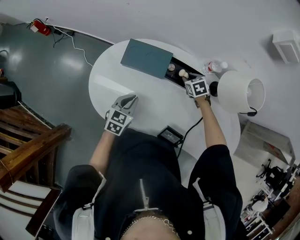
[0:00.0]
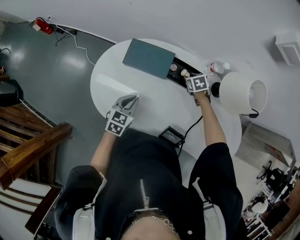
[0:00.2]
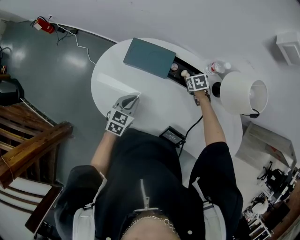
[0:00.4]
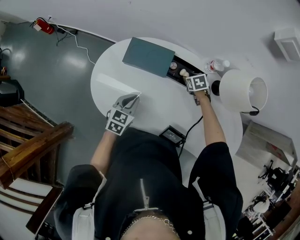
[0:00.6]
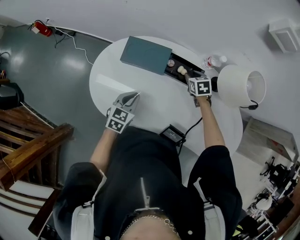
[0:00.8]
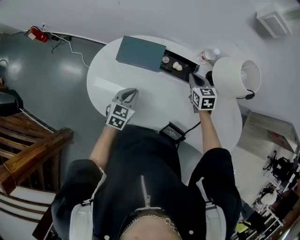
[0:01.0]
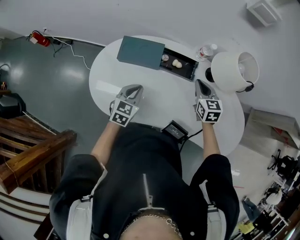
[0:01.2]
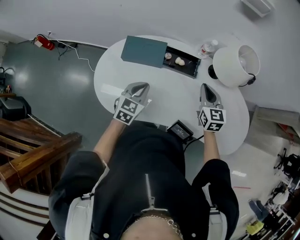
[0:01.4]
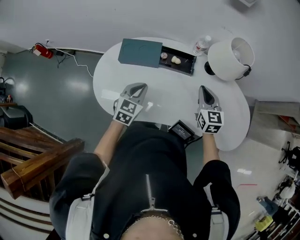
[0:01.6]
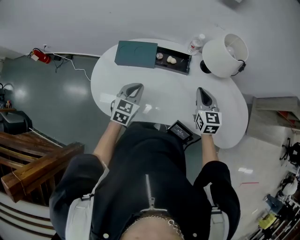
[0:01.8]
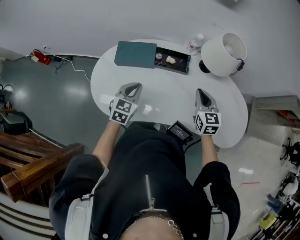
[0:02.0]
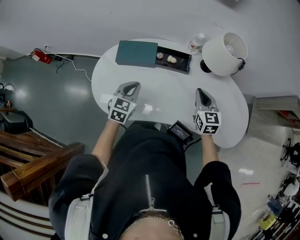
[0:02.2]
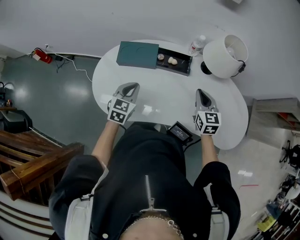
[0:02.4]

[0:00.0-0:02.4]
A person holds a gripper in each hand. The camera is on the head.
0:00.0 to 0:01.2: The right gripper moves upward and backward, roughly 20 cm, tips its fingers upward by about 30 degrees, and closes its fingers. Meanwhile the left gripper changes place by some 5 cm.
0:01.2 to 0:02.4: The right gripper heads backward, covering roughly 10 cm.

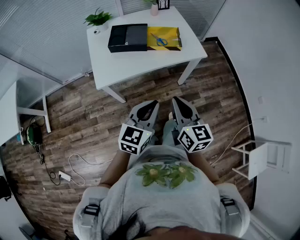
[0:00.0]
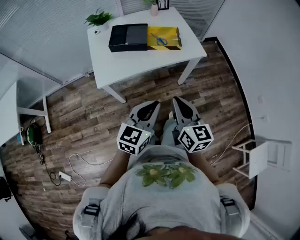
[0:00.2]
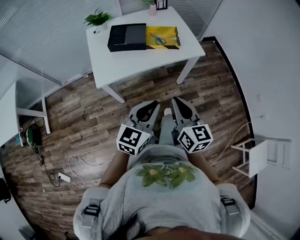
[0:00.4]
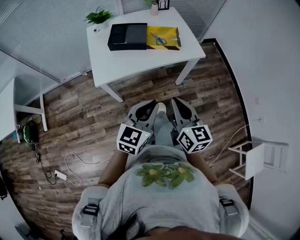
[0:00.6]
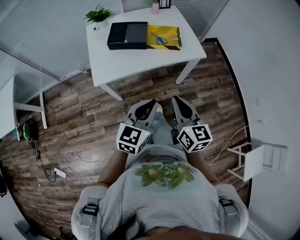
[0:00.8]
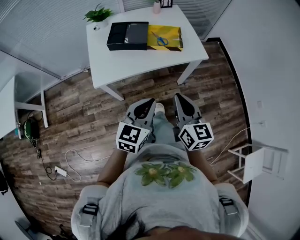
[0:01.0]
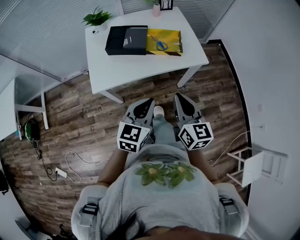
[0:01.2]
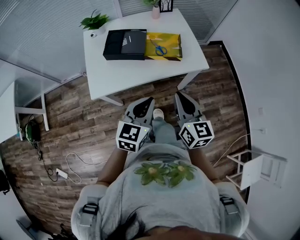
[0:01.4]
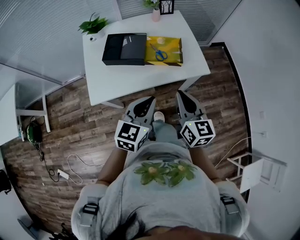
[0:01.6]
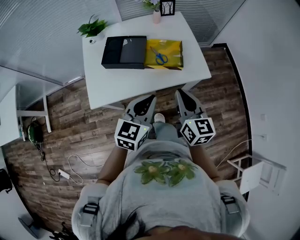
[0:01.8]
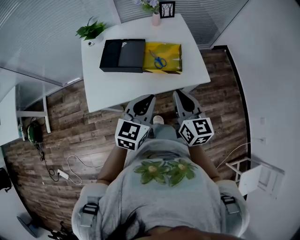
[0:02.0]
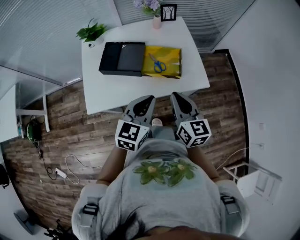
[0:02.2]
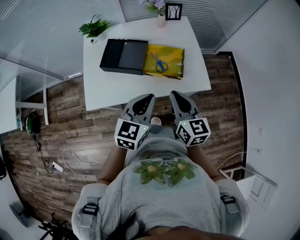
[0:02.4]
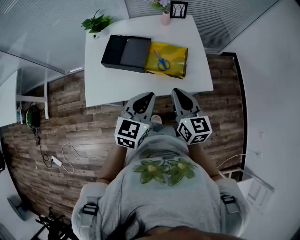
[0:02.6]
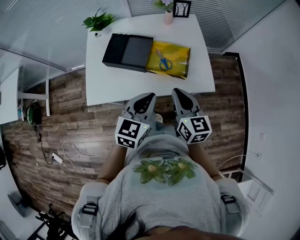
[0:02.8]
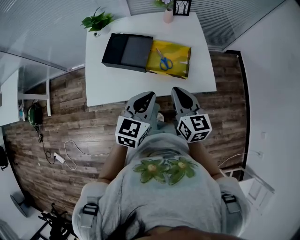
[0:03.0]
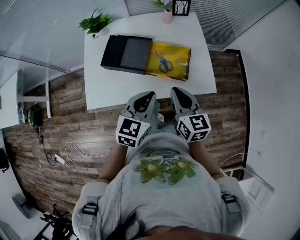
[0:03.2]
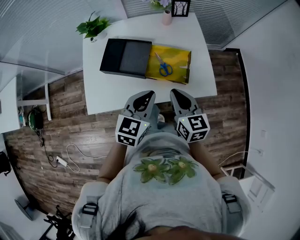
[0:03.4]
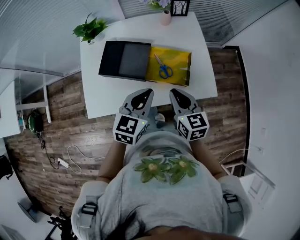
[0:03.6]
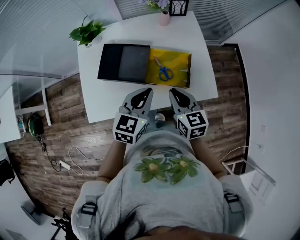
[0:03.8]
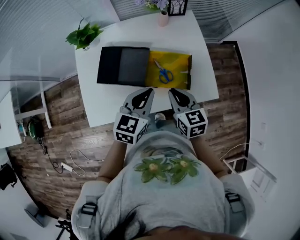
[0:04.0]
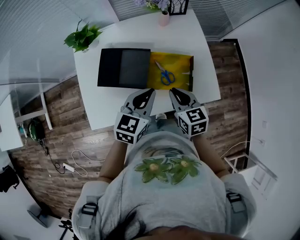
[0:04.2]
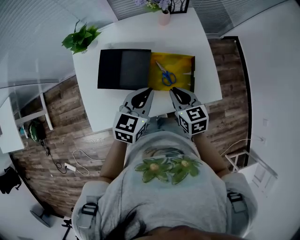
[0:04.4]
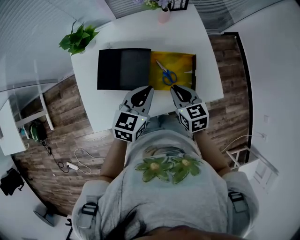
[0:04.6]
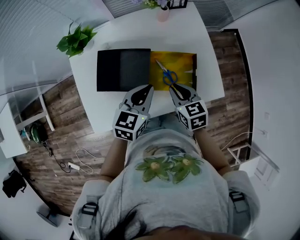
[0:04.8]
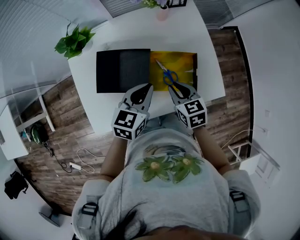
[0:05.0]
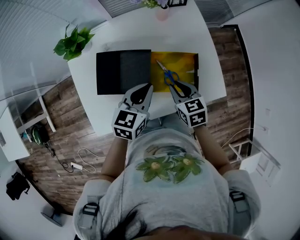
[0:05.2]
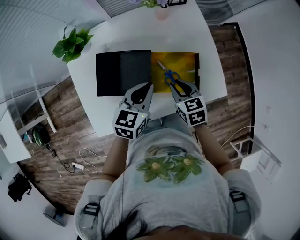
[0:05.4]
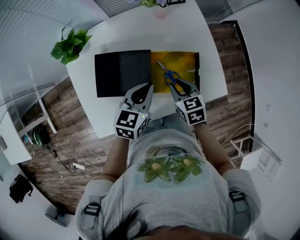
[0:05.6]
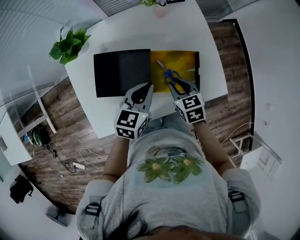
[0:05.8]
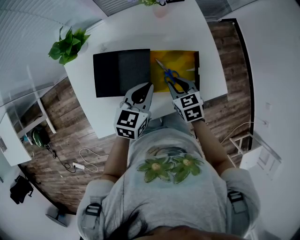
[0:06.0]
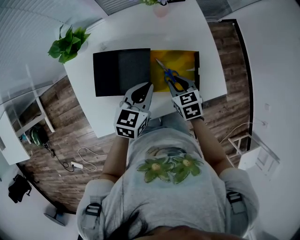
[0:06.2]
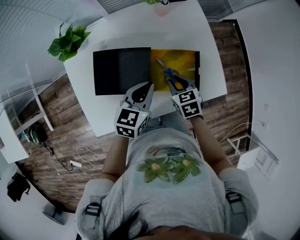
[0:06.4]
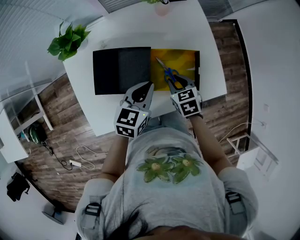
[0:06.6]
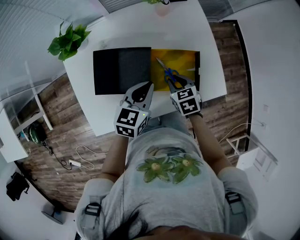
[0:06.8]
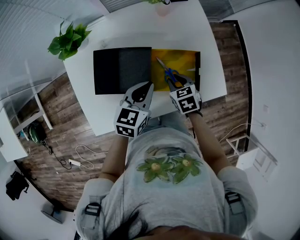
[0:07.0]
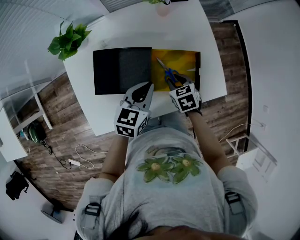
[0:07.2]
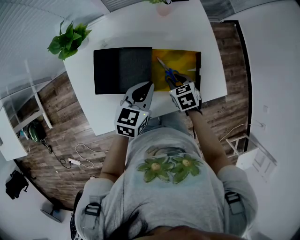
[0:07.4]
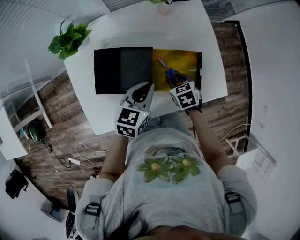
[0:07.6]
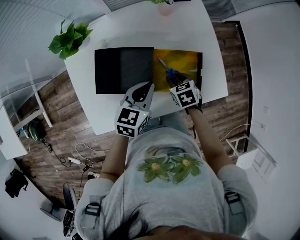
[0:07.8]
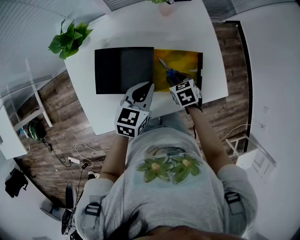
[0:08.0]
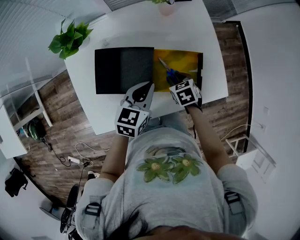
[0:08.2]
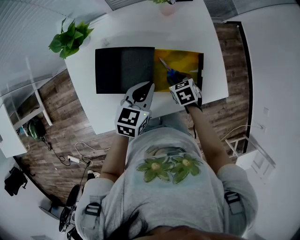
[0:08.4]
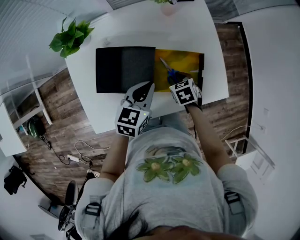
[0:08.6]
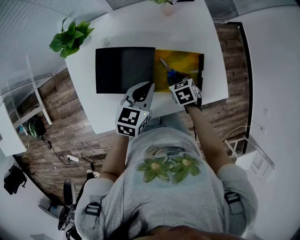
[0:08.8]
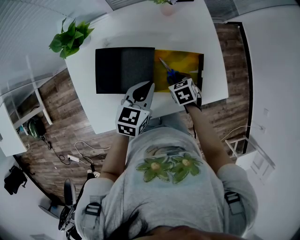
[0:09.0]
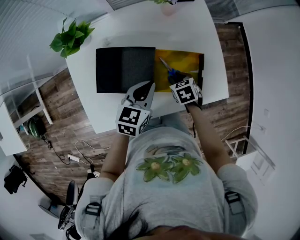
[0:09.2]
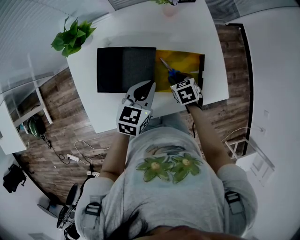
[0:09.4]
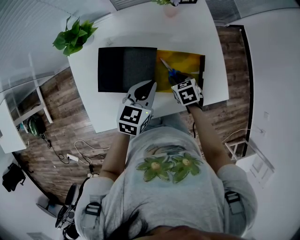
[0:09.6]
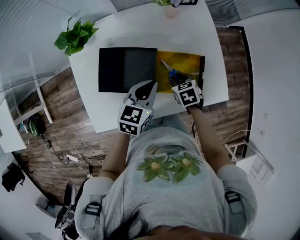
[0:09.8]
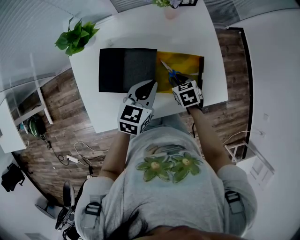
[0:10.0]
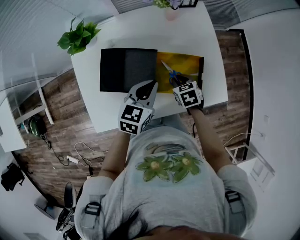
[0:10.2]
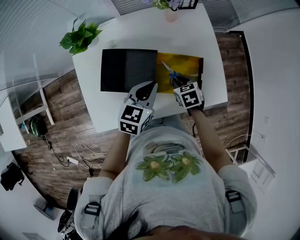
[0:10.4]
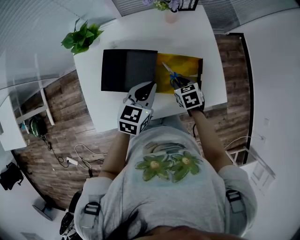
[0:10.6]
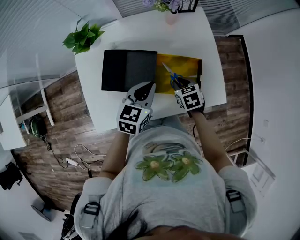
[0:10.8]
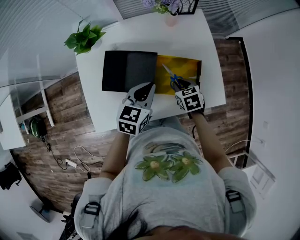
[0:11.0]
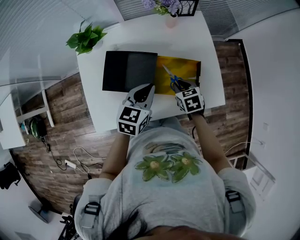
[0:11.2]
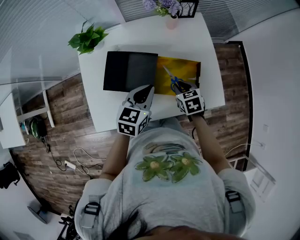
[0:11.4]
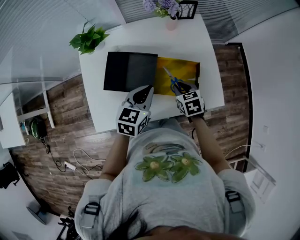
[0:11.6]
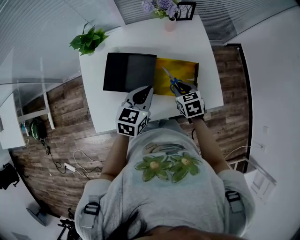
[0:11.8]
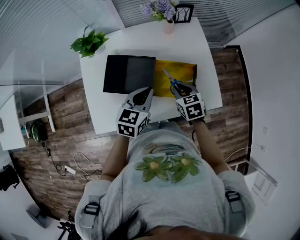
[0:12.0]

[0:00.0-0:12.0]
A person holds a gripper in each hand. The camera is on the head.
0:00.0 to 0:01.6: The two grippers go some 15 cm forward.
0:01.6 to 0:03.0: The two grippers go approximately 10 cm forward.
0:03.0 to 0:04.4: The right gripper is displaced forward and downward by approximately 15 cm, and changes its angle by roughly 20 degrees, while the left gripper heads forward, covering some 15 cm.
0:04.4 to 0:06.0: The left gripper travels downward by roughly 5 cm. The right gripper goes approximately 10 cm downward.
0:06.0 to 0:07.6: The right gripper heads downward, covering some 5 cm.
0:07.6 to 0:10.4: The grippers move only a little.
0:10.4 to 0:12.0: The right gripper travels upward by some 10 cm.

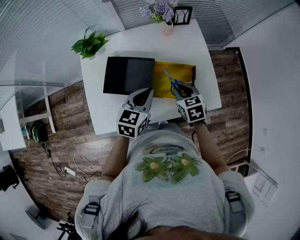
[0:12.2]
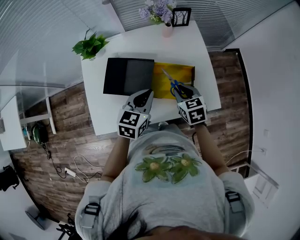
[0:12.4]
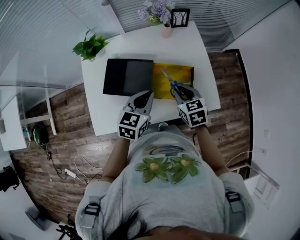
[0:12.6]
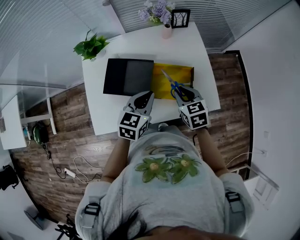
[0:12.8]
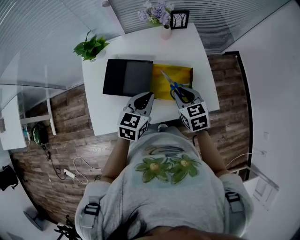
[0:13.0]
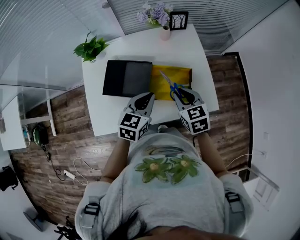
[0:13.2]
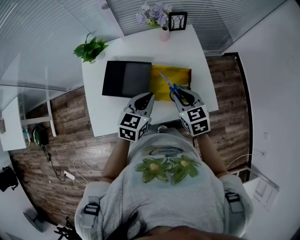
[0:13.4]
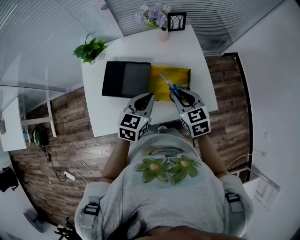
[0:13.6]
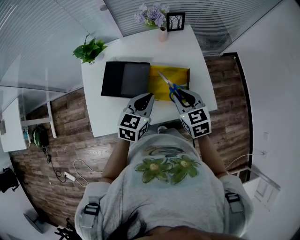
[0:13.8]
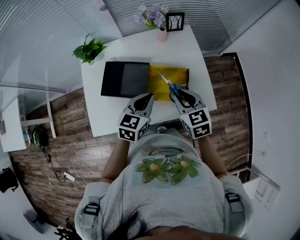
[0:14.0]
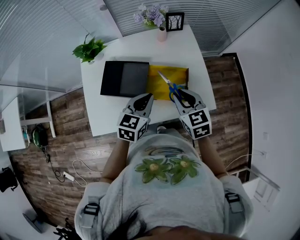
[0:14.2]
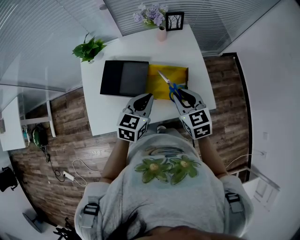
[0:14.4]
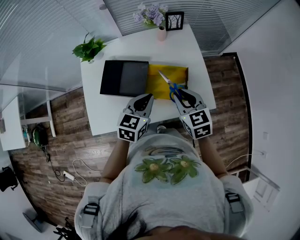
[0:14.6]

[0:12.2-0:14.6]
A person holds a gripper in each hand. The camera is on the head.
0:12.2 to 0:13.4: The right gripper moves upward, some 5 cm.
0:13.4 to 0:14.6: The grippers move only a little.

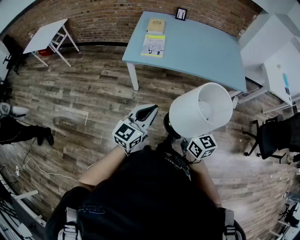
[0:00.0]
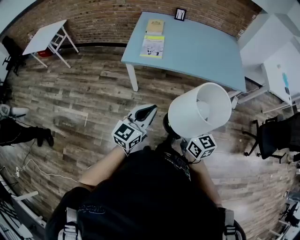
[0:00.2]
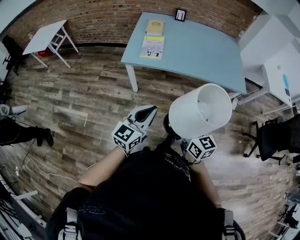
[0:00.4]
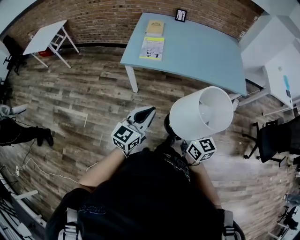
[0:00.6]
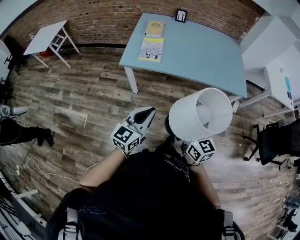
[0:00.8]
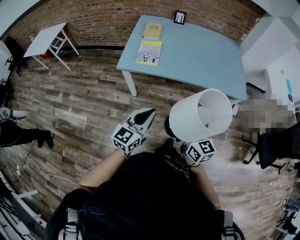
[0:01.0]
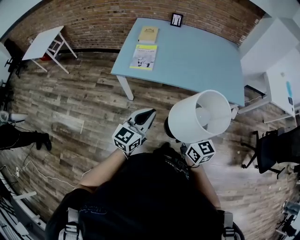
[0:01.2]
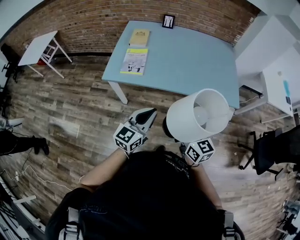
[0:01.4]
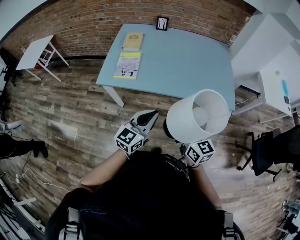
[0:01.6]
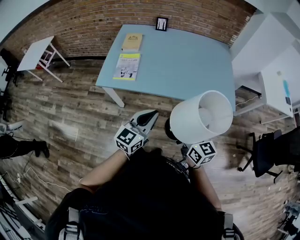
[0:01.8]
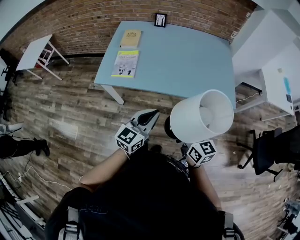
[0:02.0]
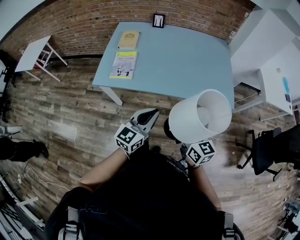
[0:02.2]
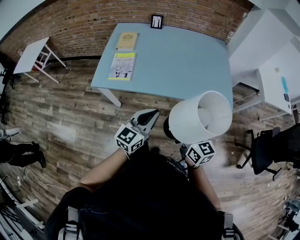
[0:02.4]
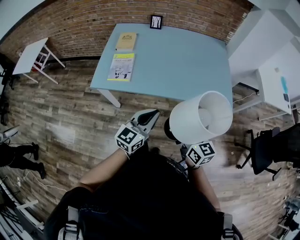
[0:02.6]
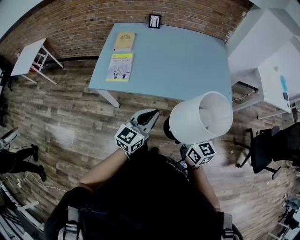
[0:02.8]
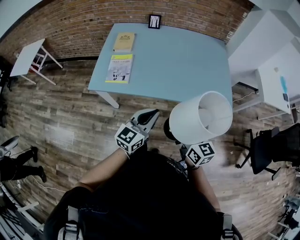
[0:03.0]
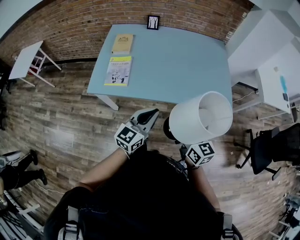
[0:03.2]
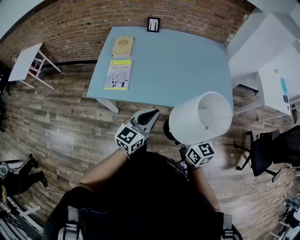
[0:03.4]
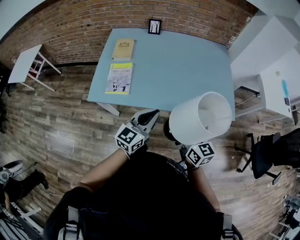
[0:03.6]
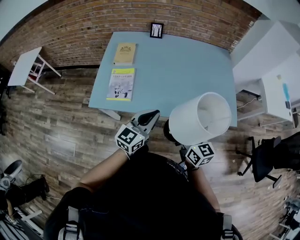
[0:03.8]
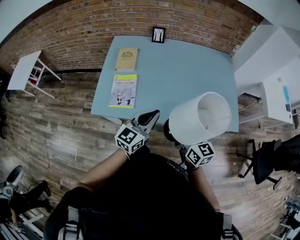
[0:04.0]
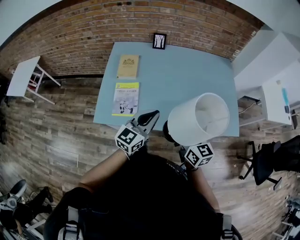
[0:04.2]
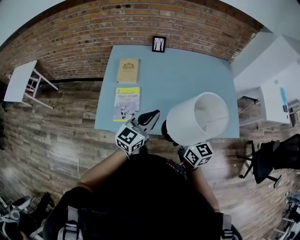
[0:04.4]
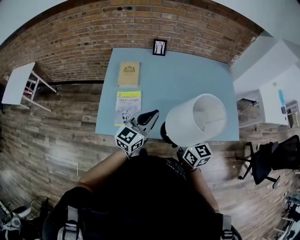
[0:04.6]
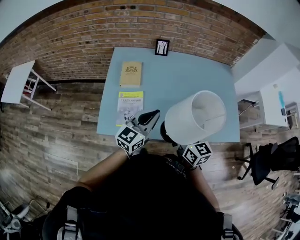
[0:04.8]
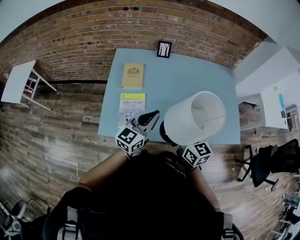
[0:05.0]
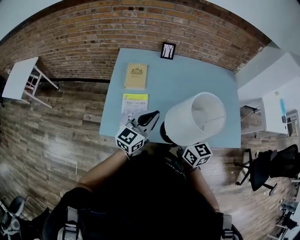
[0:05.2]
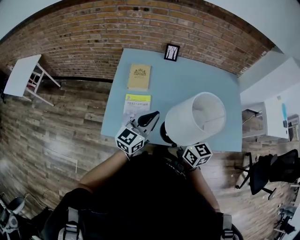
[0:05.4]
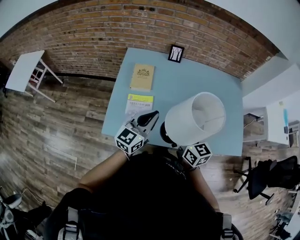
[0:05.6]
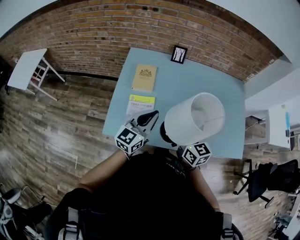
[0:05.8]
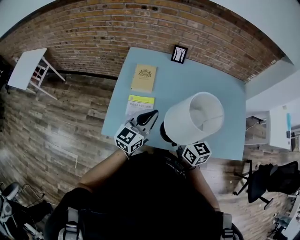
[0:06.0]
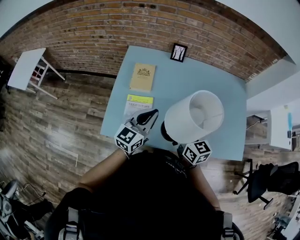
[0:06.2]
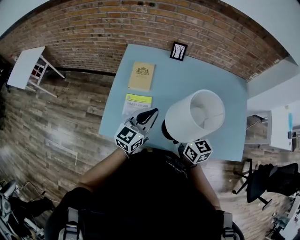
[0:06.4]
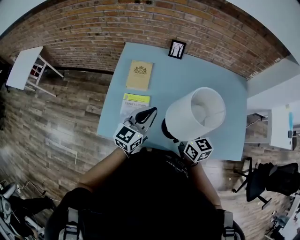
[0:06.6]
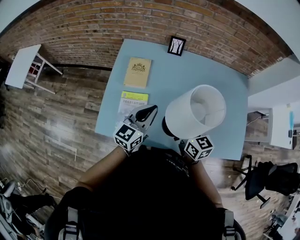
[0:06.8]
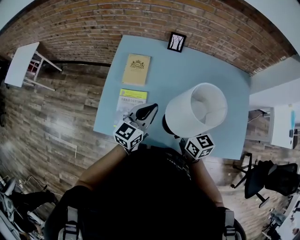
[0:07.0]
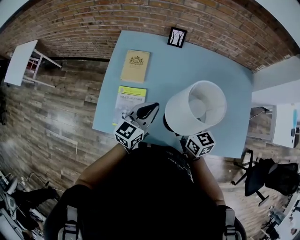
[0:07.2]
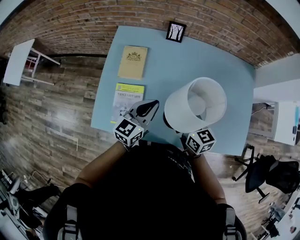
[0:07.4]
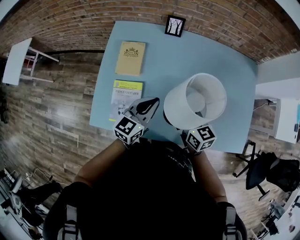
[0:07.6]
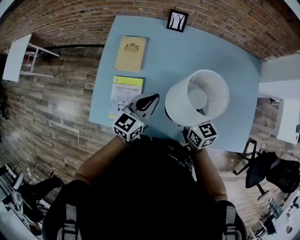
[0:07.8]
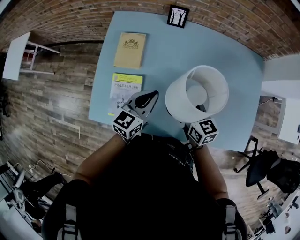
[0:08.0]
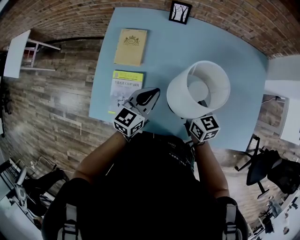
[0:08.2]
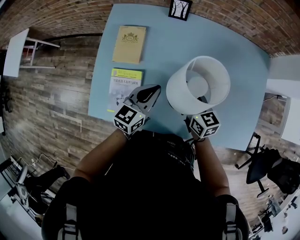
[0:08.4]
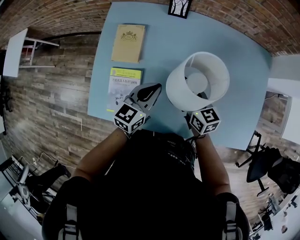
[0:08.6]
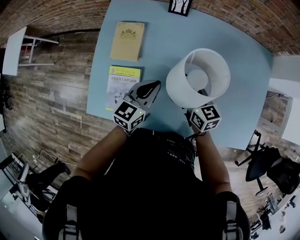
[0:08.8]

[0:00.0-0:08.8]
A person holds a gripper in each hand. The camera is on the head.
0:00.0 to 0:01.4: The grippers both shift forward and to the right by roughly 20 cm.
0:01.4 to 0:03.0: The grippers both shift forward and to the right by roughly 15 cm.
0:03.0 to 0:04.4: The two grippers go about 25 cm forward and to the left.
0:04.4 to 0:05.8: Both grippers travel together to the left and forward, about 15 cm.
0:05.8 to 0:07.4: Both grippers move forward, to the right and downward, roughly 15 cm.
0:07.4 to 0:08.8: The two grippers go roughly 10 cm downward and forward.
